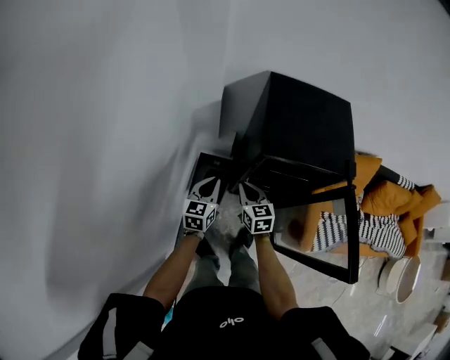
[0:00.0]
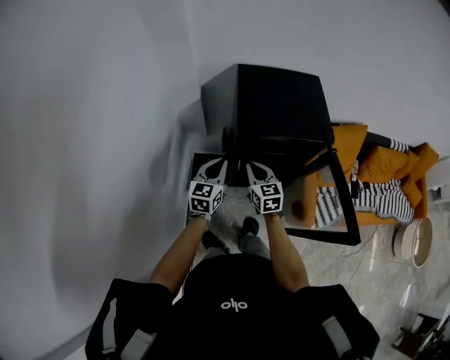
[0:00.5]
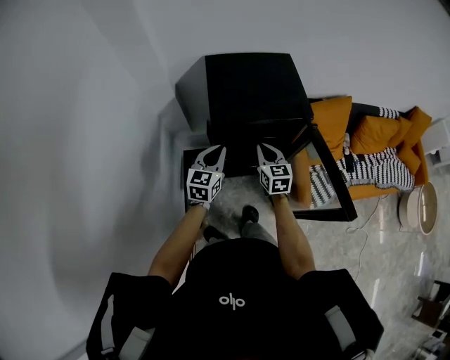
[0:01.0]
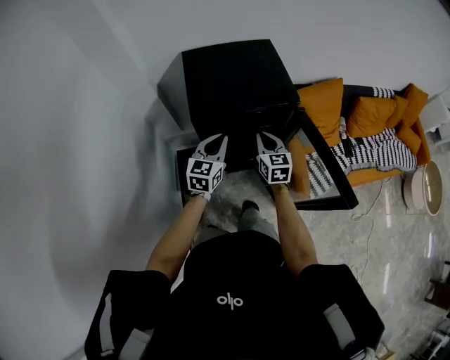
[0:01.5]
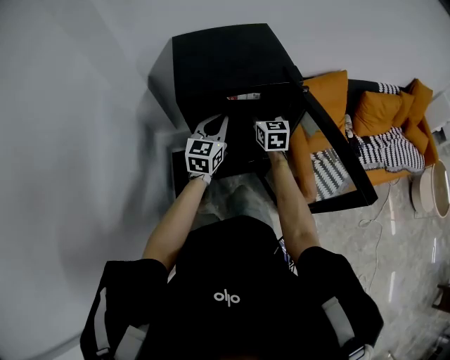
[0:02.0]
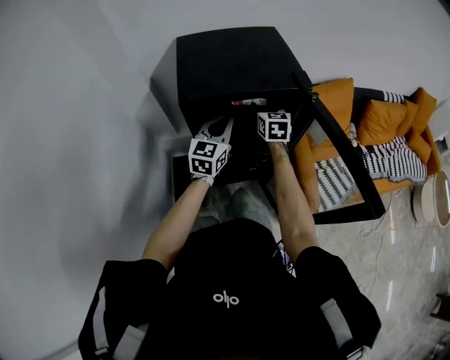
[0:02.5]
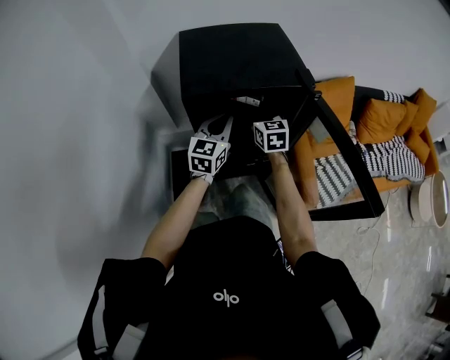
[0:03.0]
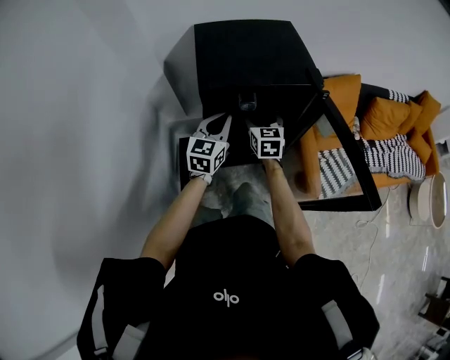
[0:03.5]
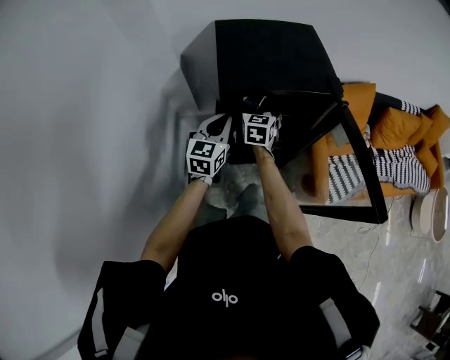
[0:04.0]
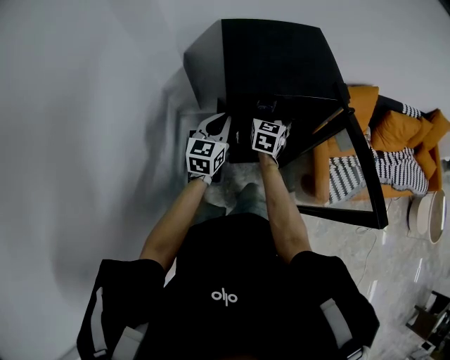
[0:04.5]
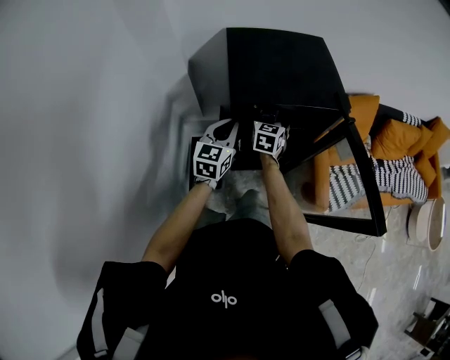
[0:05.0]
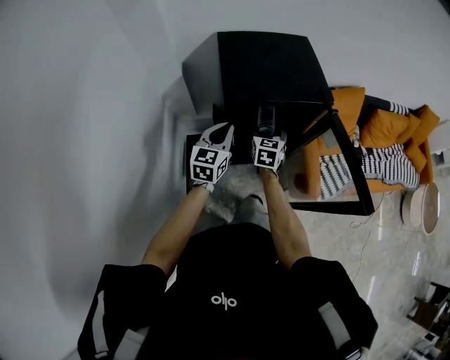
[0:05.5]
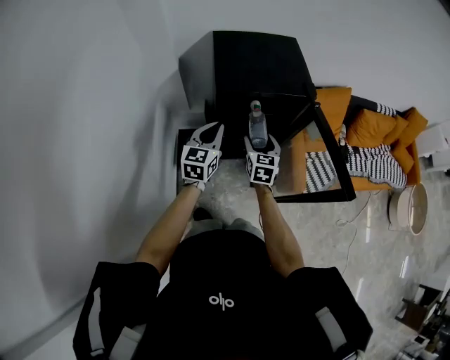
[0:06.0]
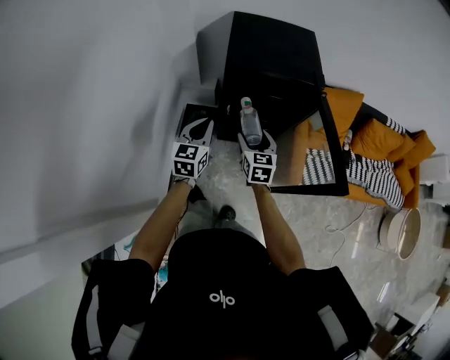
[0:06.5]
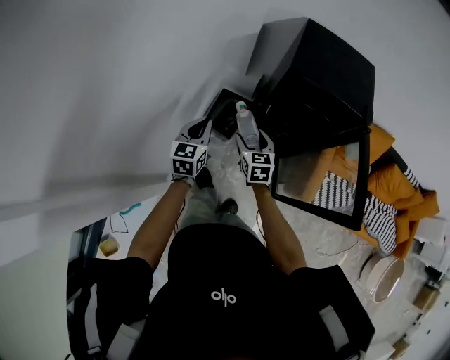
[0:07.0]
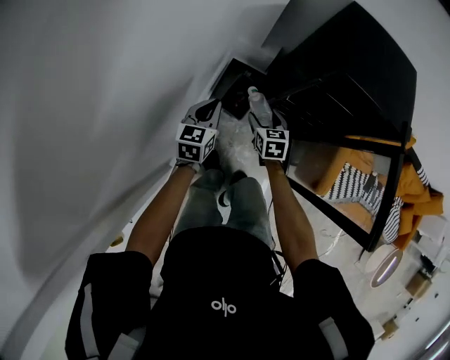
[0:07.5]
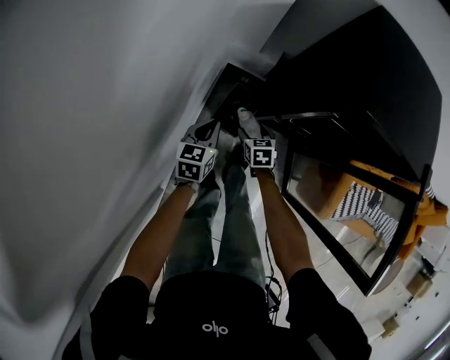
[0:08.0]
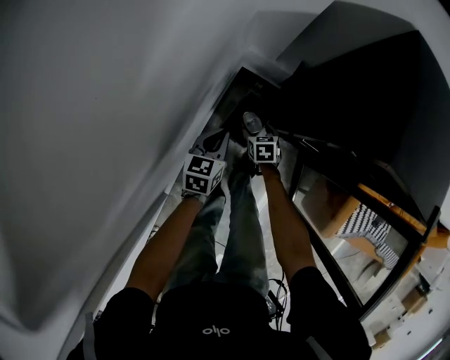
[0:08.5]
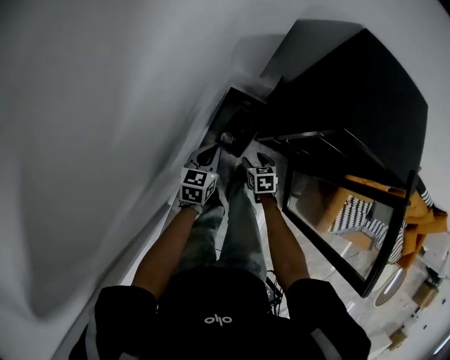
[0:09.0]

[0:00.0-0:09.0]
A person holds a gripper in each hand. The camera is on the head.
0:00.0 to 0:02.0: The left gripper shifts approximately 25 cm to the right, and swivels about 30 degrees. Meanwhile the right gripper heads to the right and forward, covering approximately 30 cm, turns by roughly 30 degrees, and opens up.
0:02.0 to 0:04.5: Both grippers travel together to the left, approximately 10 cm. The right gripper opens up.
0:04.5 to 0:07.0: The right gripper goes upward and returns, about 5 cm each way, and swivels some 40 degrees; the left gripper goes upward and returns, roughly 10 cm each way, and changes its angle by roughly 30 degrees.
0:07.0 to 0:09.0: Both grippers move downward and forward, about 30 cm. The right gripper turns by about 30 degrees.

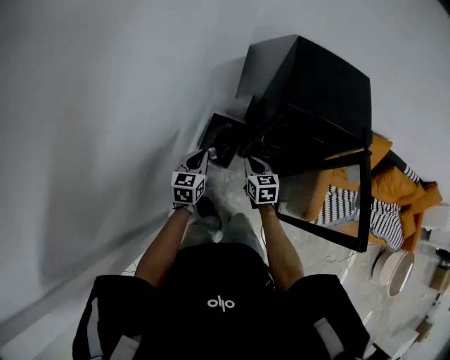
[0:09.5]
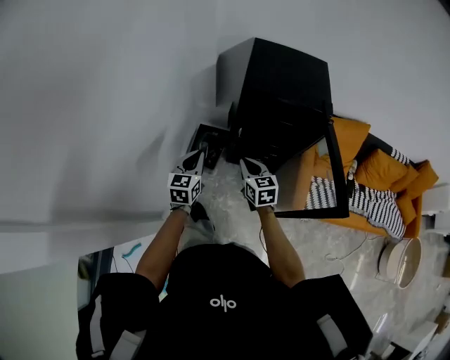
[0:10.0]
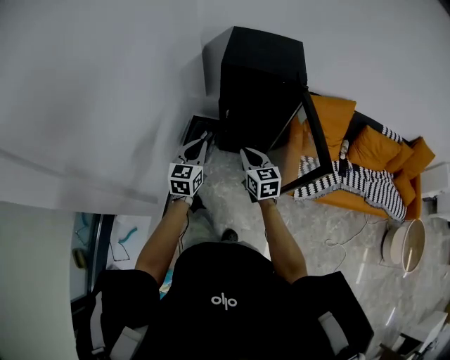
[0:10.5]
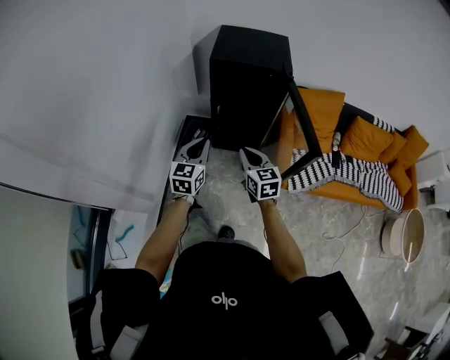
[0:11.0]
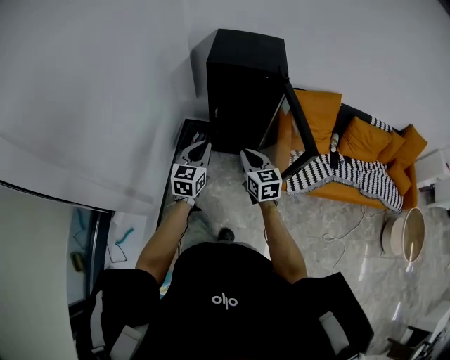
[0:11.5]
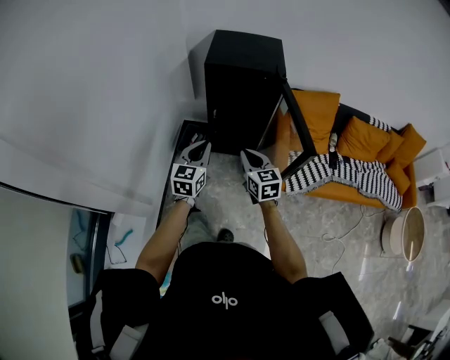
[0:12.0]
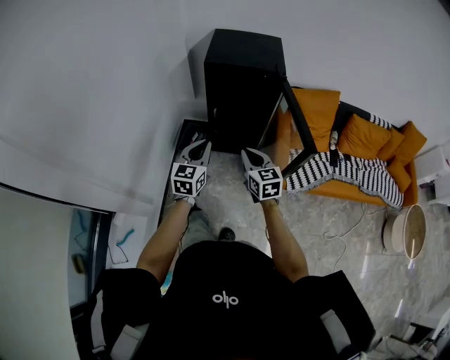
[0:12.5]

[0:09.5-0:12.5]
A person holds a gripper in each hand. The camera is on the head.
0:09.5 to 0:11.0: The two grippers go roughly 35 cm backward, to the right and upward.
0:11.0 to 0:12.5: There are only small adjustments of the grippers.

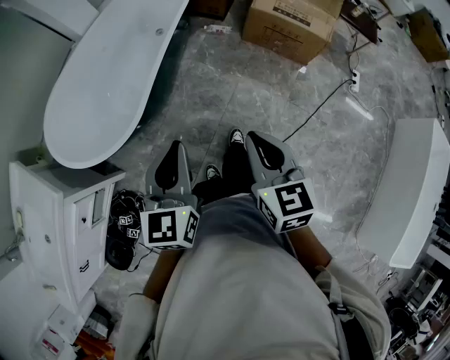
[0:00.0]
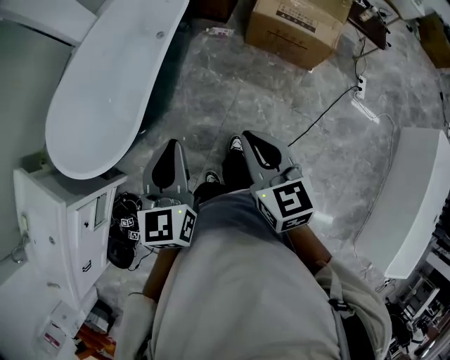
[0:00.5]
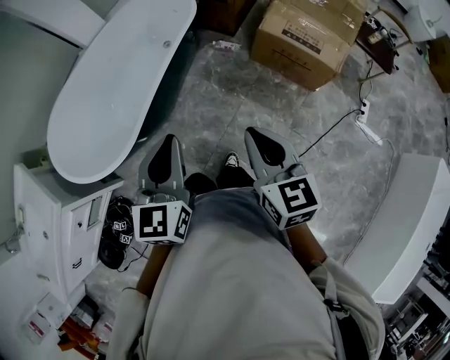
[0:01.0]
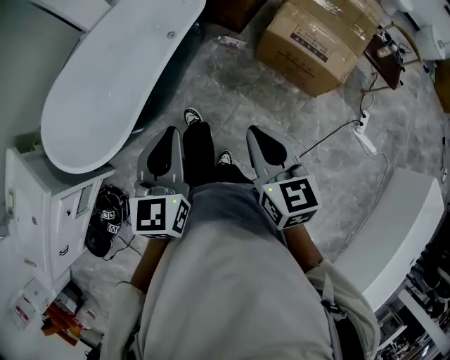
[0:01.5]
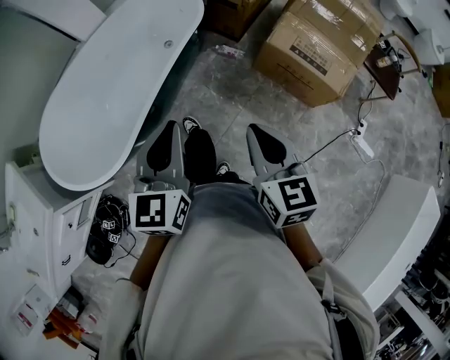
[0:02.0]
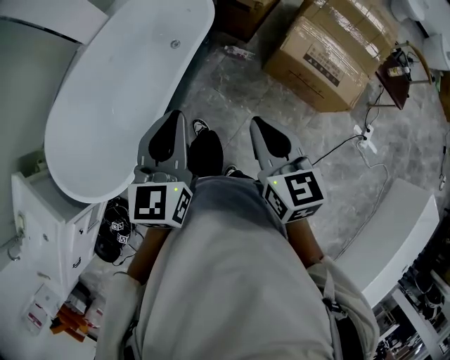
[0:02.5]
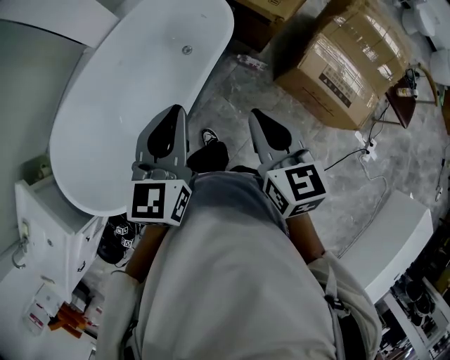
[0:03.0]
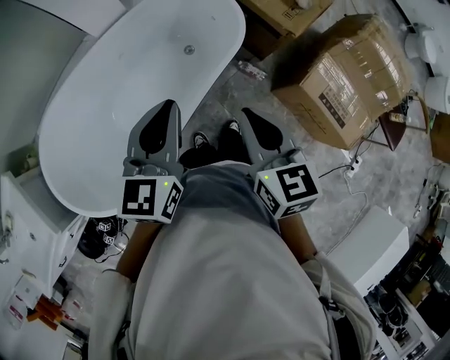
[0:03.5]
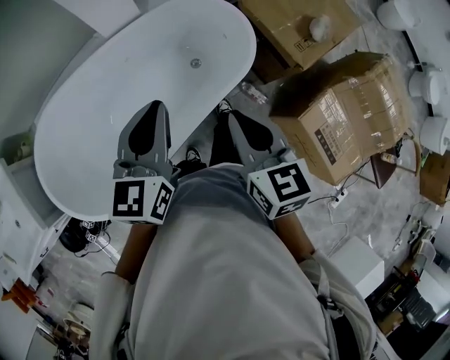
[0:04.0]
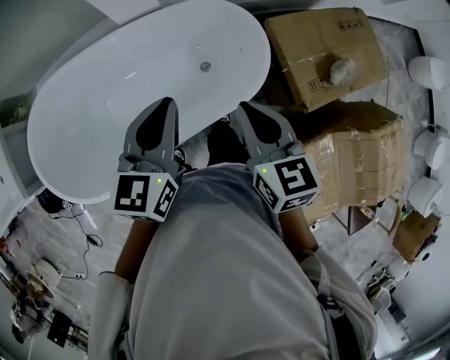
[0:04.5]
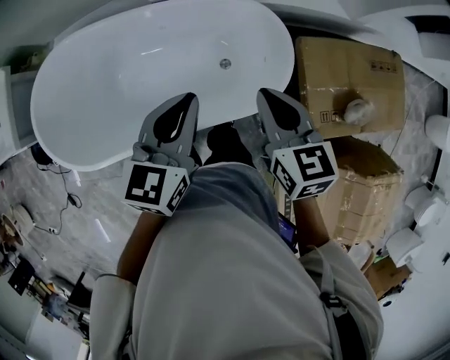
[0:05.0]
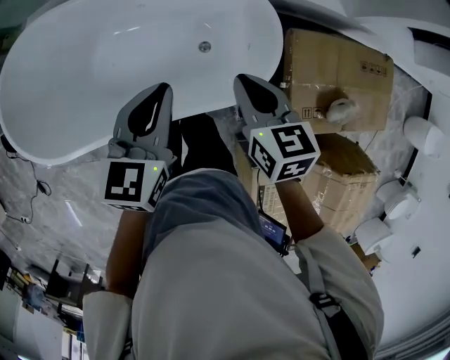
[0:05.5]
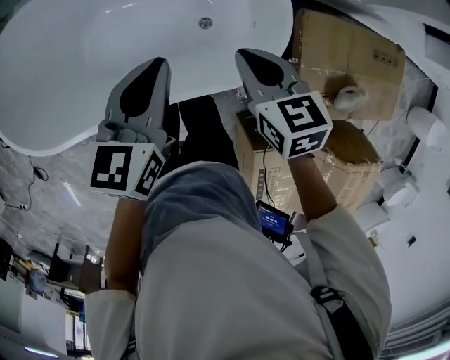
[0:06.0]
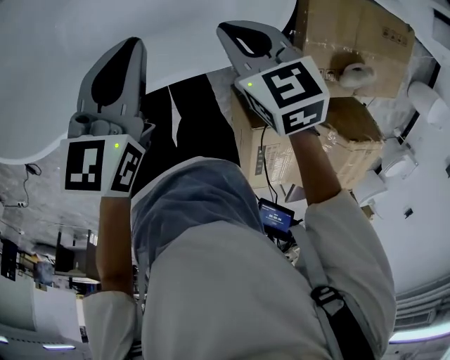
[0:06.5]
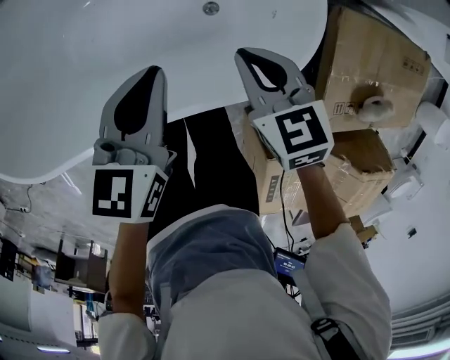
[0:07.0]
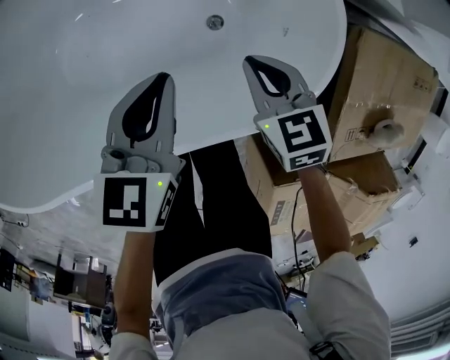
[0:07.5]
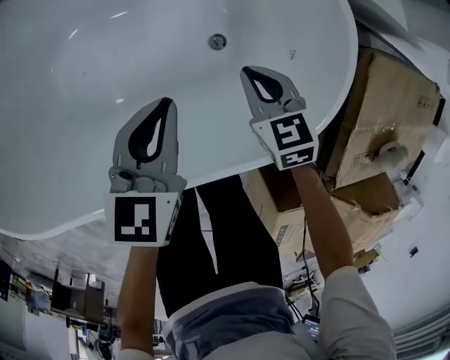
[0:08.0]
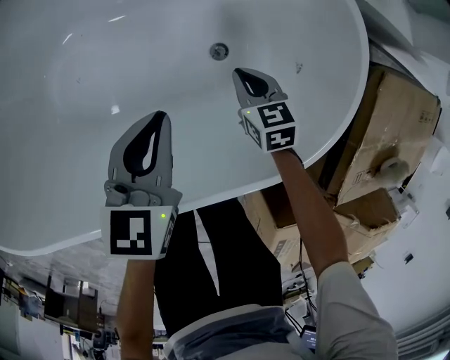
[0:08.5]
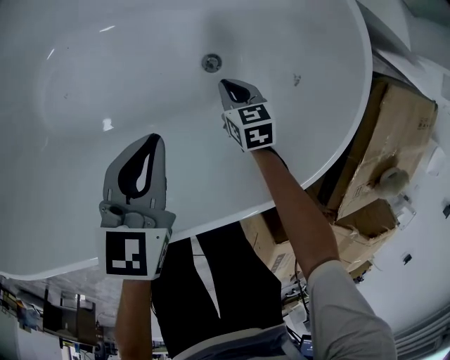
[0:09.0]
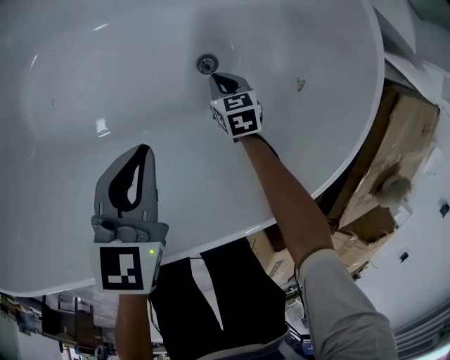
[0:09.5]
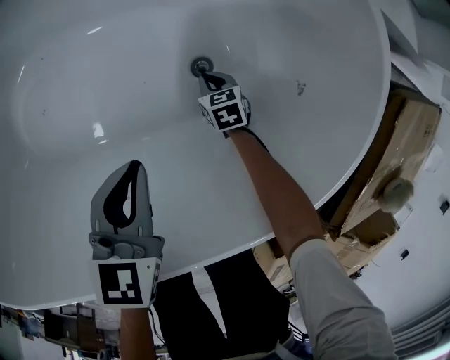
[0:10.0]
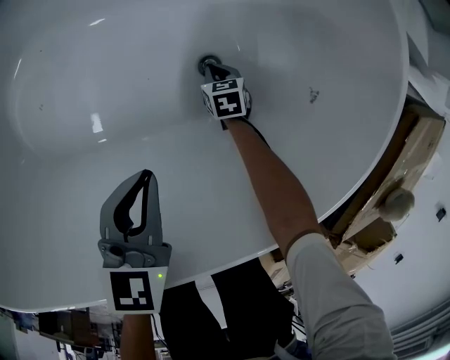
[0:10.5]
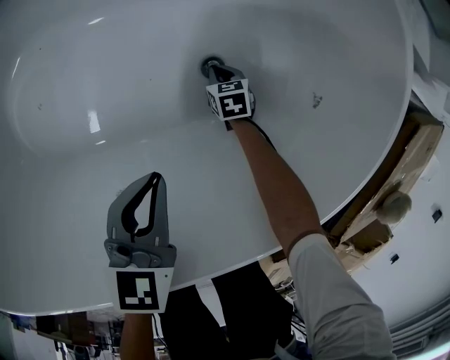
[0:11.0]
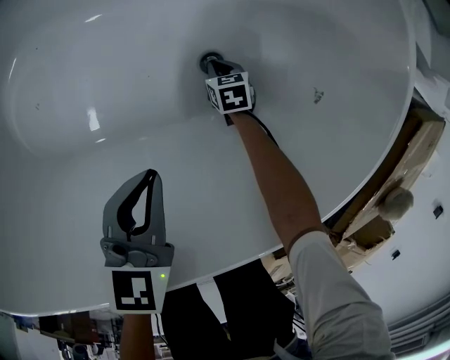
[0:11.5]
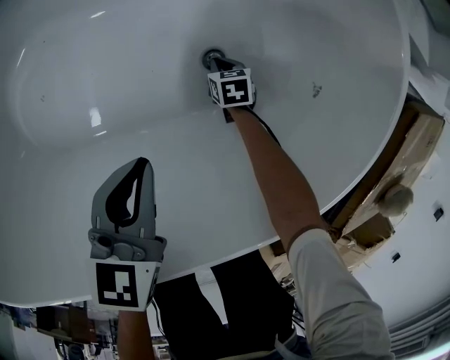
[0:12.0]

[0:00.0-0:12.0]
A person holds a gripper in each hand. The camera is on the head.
0:00.0 to 0:02.0: Both grippers travel together forward and to the right, about 30 cm.
0:02.0 to 0:04.0: The two grippers travel together, forward, roughly 40 cm. The right gripper rotates about 20 degrees.
0:04.0 to 0:06.0: The left gripper changes place by roughly 25 cm, and changes its angle by roughly 30 degrees; the right gripper changes place by about 35 cm, and changes its angle by approximately 40 degrees.
0:06.0 to 0:08.0: The grippers both shift downward by about 35 cm.
0:08.0 to 0:10.0: The right gripper goes some 35 cm downward, while the left gripper heads downward, covering about 15 cm.
0:10.0 to 0:12.0: The right gripper ends up roughly 5 cm from where it was.

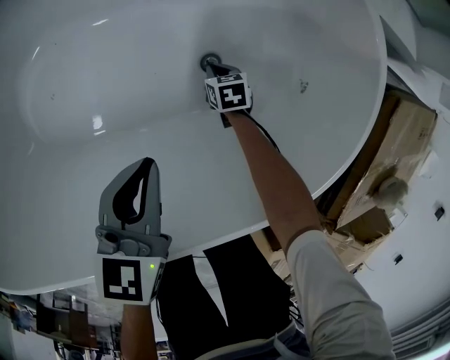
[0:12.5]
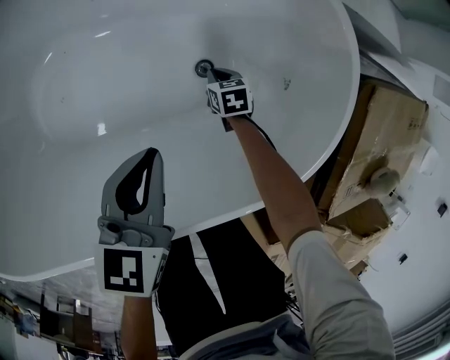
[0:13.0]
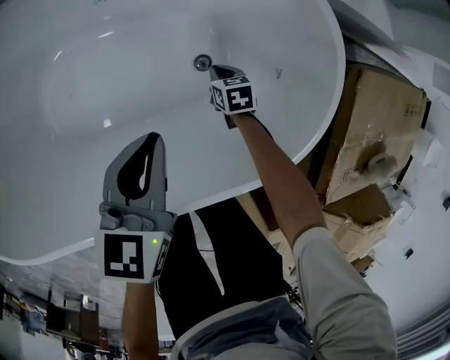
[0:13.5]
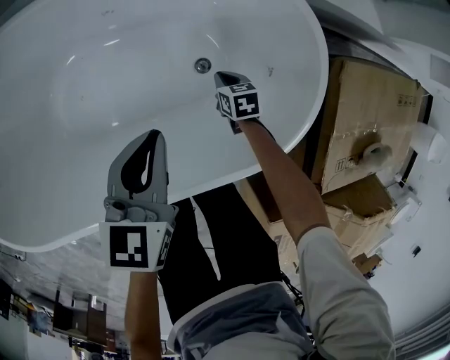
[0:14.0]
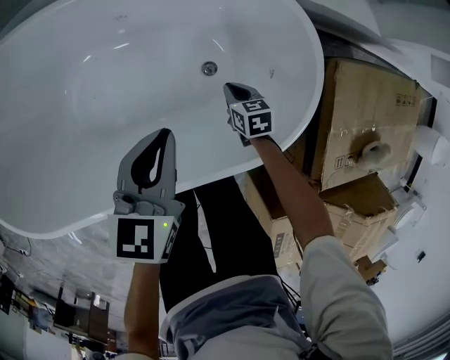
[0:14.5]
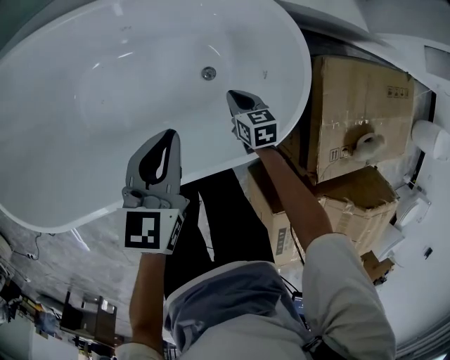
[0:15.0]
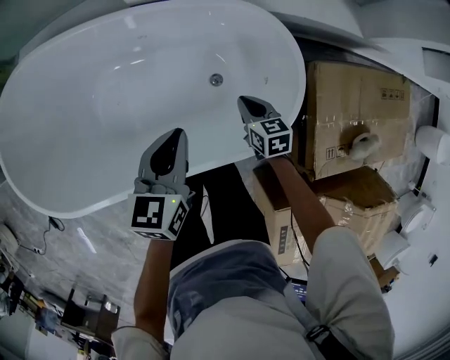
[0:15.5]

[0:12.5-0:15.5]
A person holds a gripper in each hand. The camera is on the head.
0:12.5 to 0:14.0: Both grippers travel together upward, roughly 20 cm.
0:14.0 to 0:15.5: The left gripper goes some 15 cm upward, while the right gripper is displaced upward by about 25 cm.
